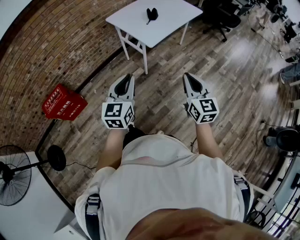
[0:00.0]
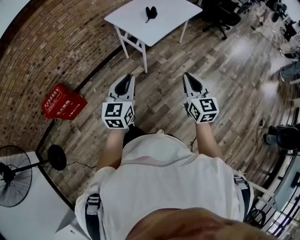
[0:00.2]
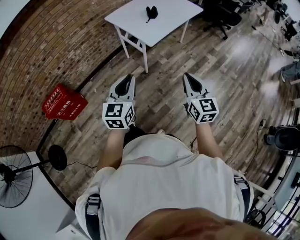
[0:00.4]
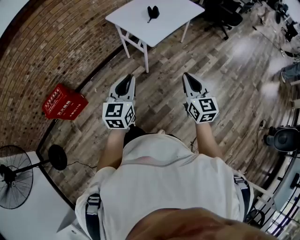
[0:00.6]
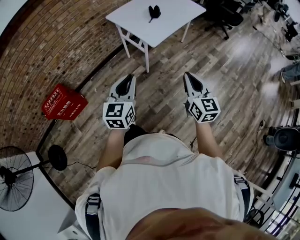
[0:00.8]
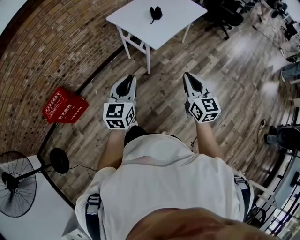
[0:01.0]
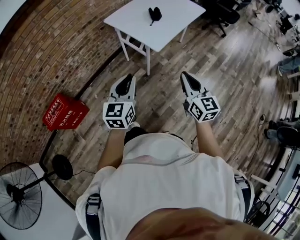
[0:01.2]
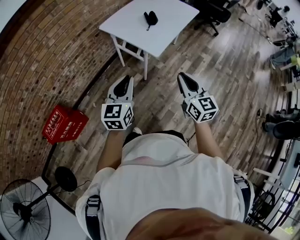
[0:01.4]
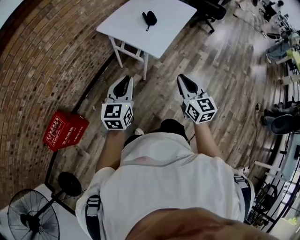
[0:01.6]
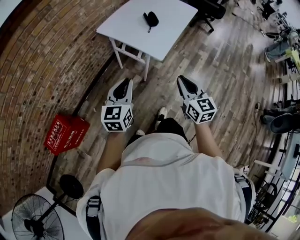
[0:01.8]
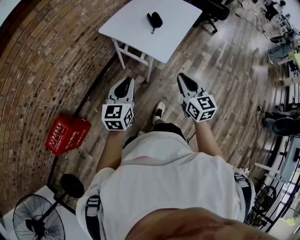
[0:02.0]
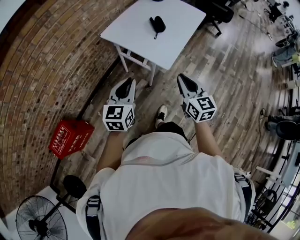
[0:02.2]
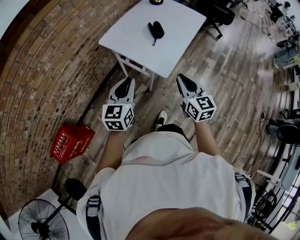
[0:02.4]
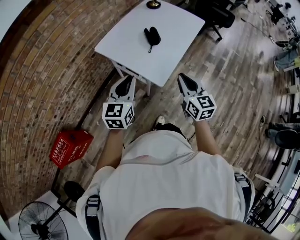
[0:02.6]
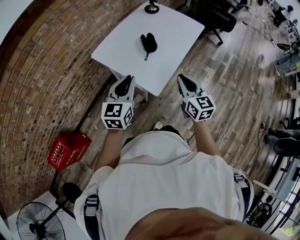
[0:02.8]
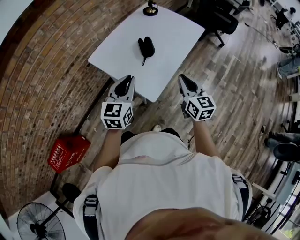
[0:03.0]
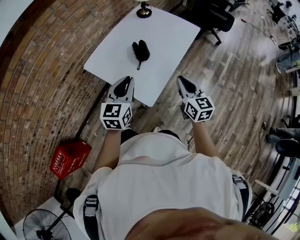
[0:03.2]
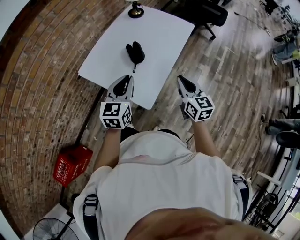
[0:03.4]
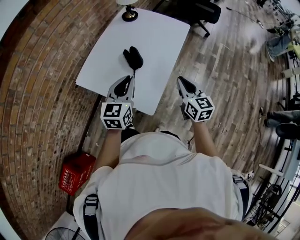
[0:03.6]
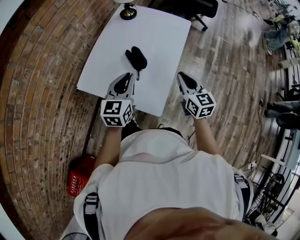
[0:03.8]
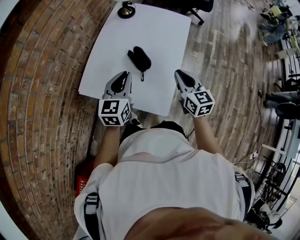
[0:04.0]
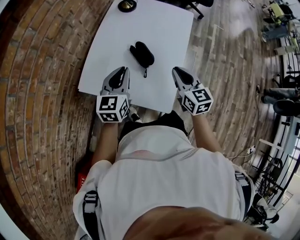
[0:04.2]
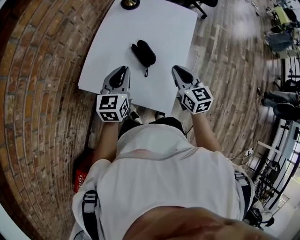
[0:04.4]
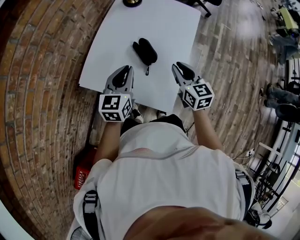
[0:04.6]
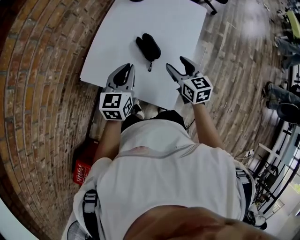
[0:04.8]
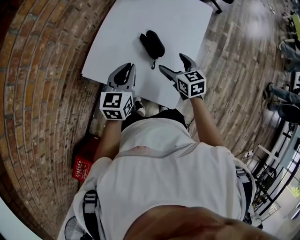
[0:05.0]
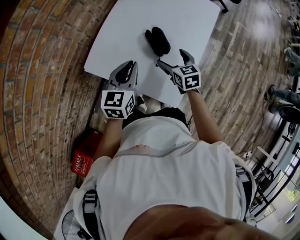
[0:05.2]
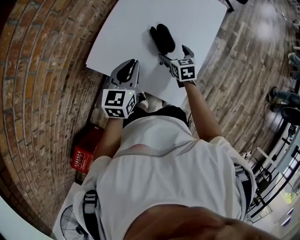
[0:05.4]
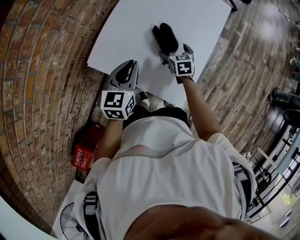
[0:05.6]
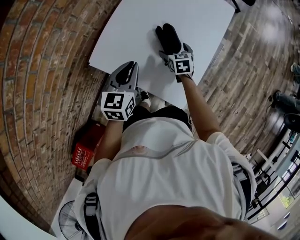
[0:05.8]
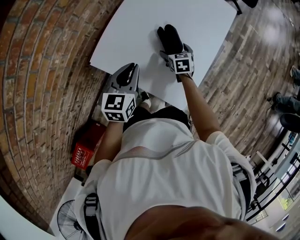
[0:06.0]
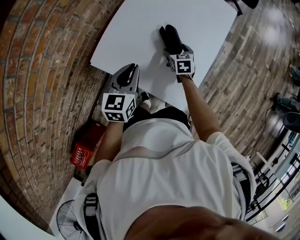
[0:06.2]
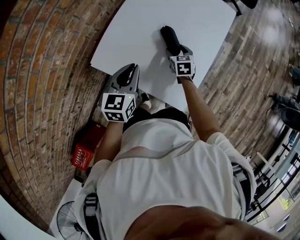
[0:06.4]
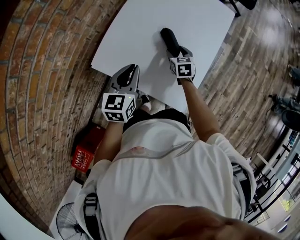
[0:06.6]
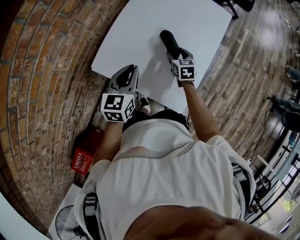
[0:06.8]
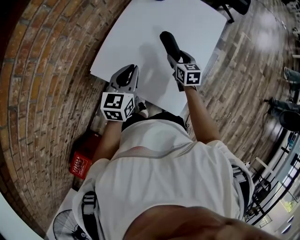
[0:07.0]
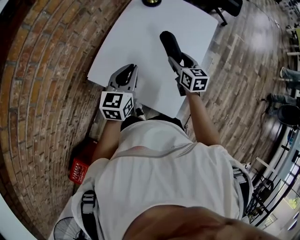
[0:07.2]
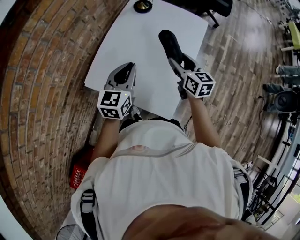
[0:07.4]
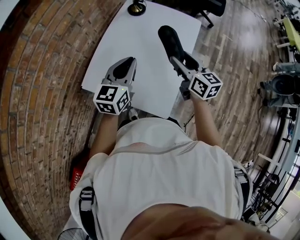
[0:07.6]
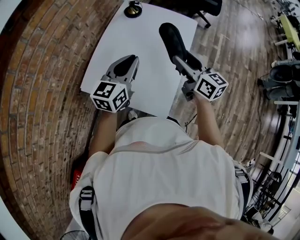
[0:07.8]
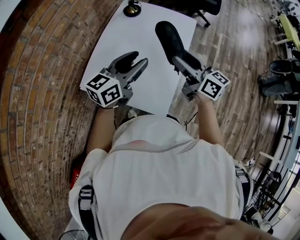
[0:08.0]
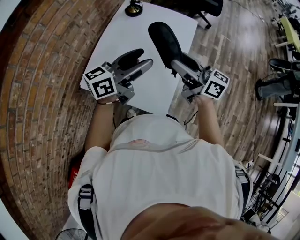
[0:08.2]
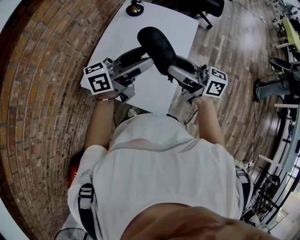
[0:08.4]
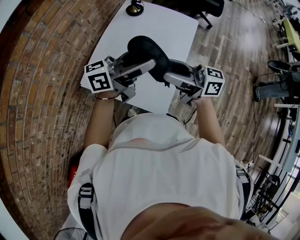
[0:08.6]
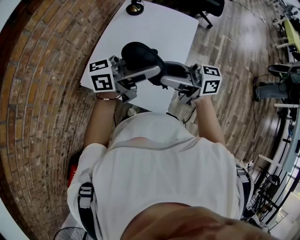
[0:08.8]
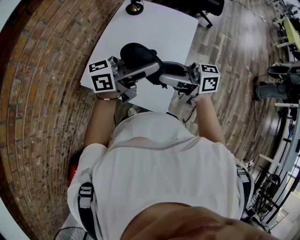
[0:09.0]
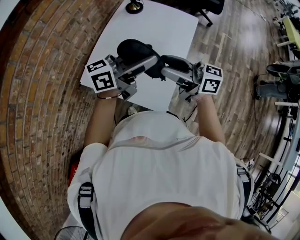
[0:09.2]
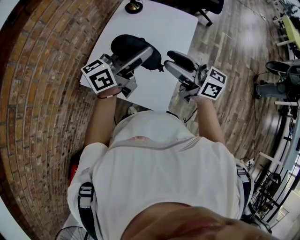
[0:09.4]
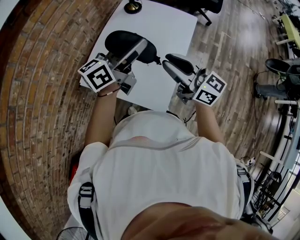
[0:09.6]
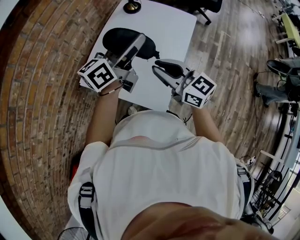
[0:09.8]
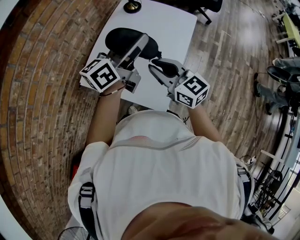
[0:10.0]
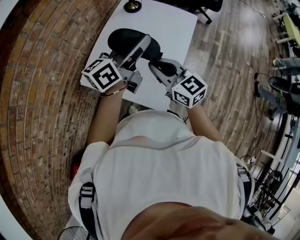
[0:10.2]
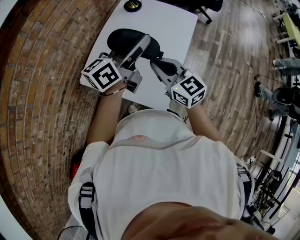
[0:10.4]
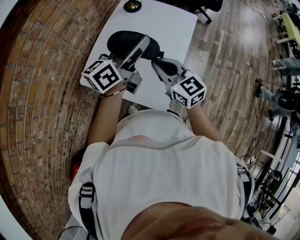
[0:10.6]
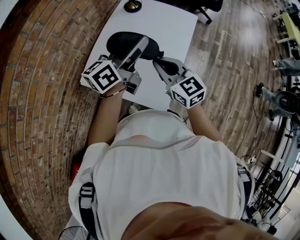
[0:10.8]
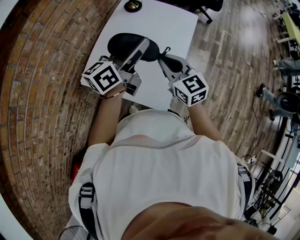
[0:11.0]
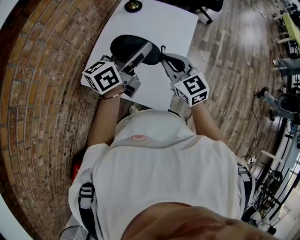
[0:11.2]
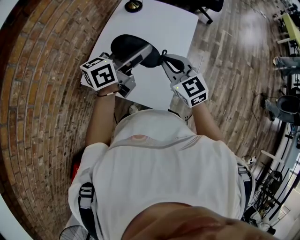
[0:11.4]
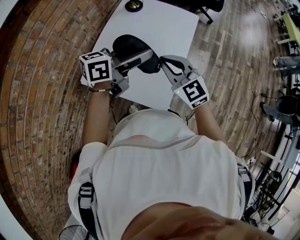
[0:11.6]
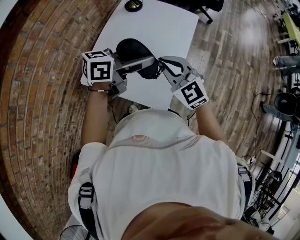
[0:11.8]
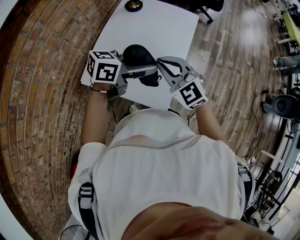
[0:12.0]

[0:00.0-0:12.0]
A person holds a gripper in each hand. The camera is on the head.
0.0 to 1.6 s: The right gripper goes about 20 cm to the left and forward; the left gripper heads forward and to the left, covering roughly 20 cm.
1.6 to 3.0 s: The grippers both shift forward by roughly 30 cm.
3.0 to 4.4 s: The grippers both shift forward and to the left by approximately 20 cm.
4.4 to 6.0 s: The right gripper moves downward and forward, some 25 cm, turns by some 30 degrees, and opens. Meanwhile the left gripper shifts approximately 5 cm downward.
6.0 to 7.6 s: The right gripper goes about 30 cm upward, tilts its fingers about 40 degrees upward, and closes up. Meanwhile the left gripper shifts some 15 cm upward and to the right.
7.6 to 9.0 s: The left gripper moves some 15 cm, swivels approximately 60 degrees, and opens up. The right gripper moves about 15 cm, and changes its angle by some 60 degrees.
9.0 to 10.4 s: The right gripper shifts by roughly 5 cm, changes its angle by some 50 degrees, and closes; the left gripper moves approximately 10 cm, and turns by about 30 degrees.
10.4 to 12.0 s: The left gripper moves downward and backward, approximately 10 cm, and changes its angle by approximately 40 degrees. Meanwhile the right gripper swivels some 30 degrees.

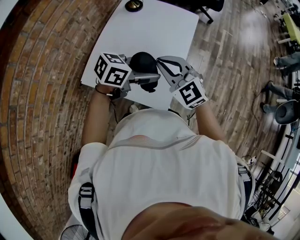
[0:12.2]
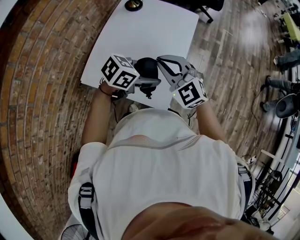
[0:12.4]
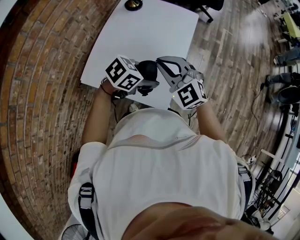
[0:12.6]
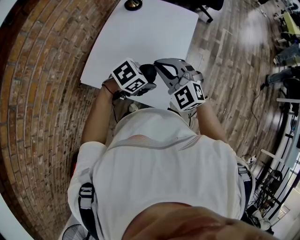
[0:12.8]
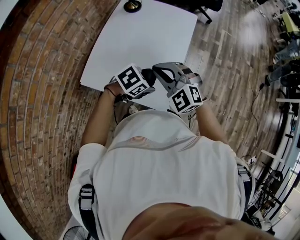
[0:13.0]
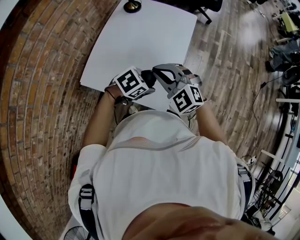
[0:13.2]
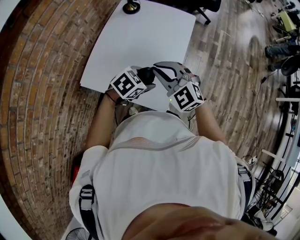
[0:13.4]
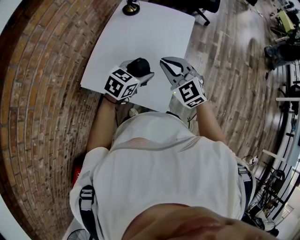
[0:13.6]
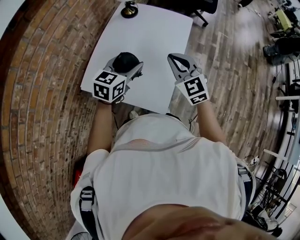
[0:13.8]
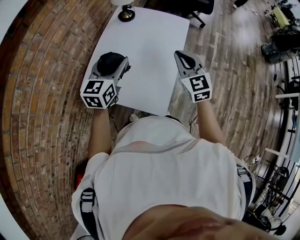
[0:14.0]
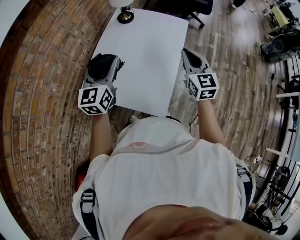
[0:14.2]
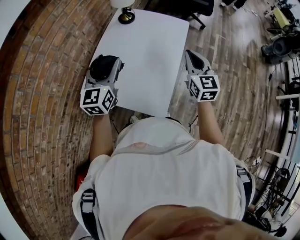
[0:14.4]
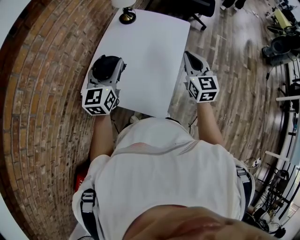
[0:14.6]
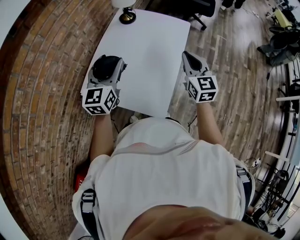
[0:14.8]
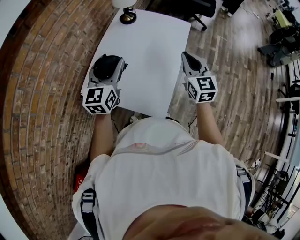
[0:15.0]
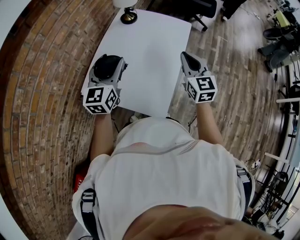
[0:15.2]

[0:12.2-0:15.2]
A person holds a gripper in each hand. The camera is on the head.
12.2 to 13.8 s: The left gripper moves roughly 10 cm downward and comes back, and swivels some 40 degrees, while the right gripper ends up about 5 cm from where it was.
13.8 to 15.2 s: The left gripper travels to the left and upward by approximately 10 cm, and changes its angle by about 30 degrees. The right gripper travels to the right by about 5 cm, and turns by approximately 20 degrees.

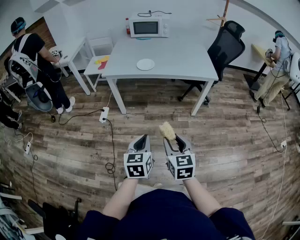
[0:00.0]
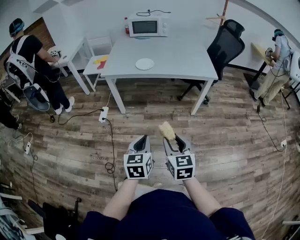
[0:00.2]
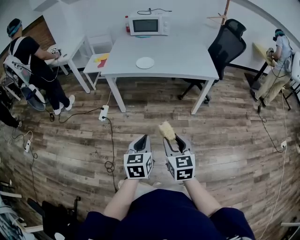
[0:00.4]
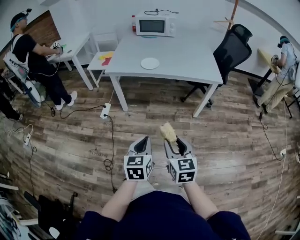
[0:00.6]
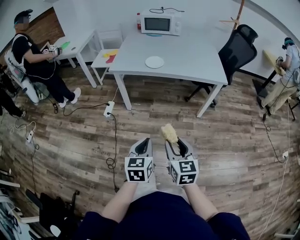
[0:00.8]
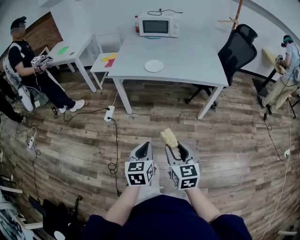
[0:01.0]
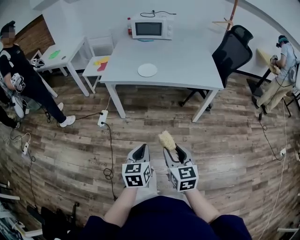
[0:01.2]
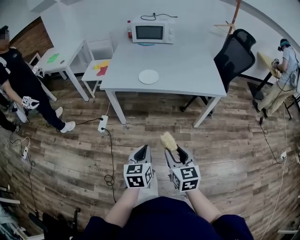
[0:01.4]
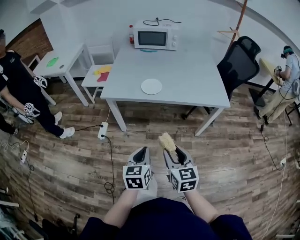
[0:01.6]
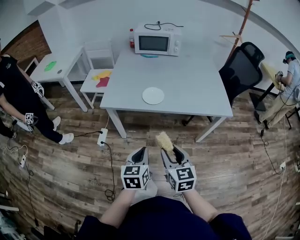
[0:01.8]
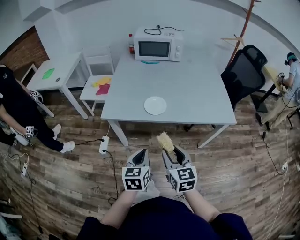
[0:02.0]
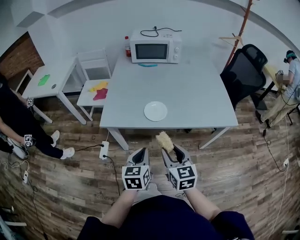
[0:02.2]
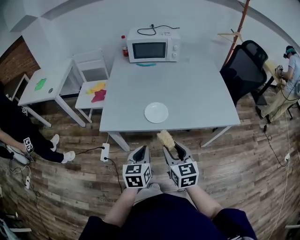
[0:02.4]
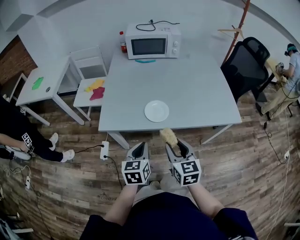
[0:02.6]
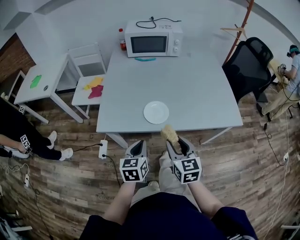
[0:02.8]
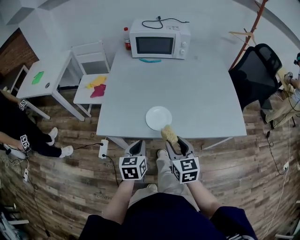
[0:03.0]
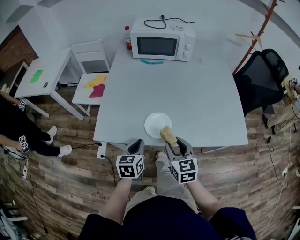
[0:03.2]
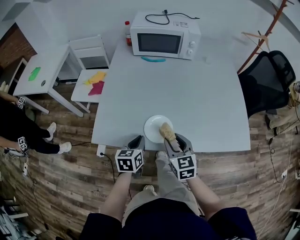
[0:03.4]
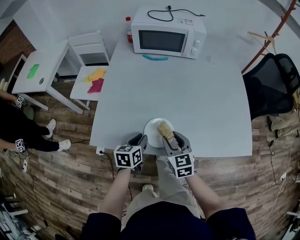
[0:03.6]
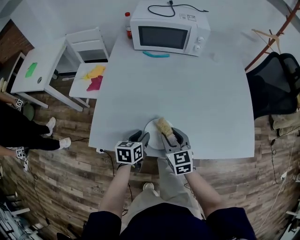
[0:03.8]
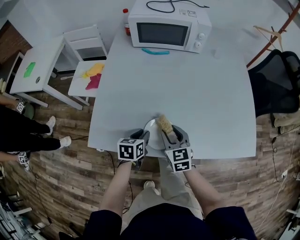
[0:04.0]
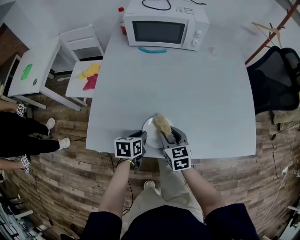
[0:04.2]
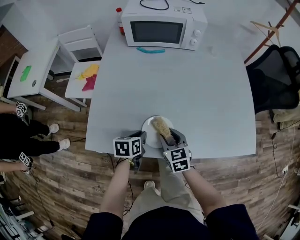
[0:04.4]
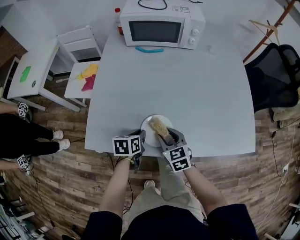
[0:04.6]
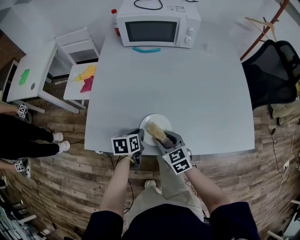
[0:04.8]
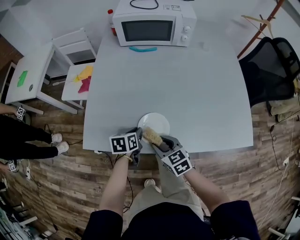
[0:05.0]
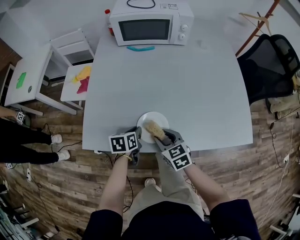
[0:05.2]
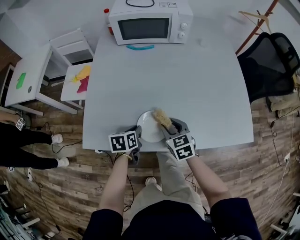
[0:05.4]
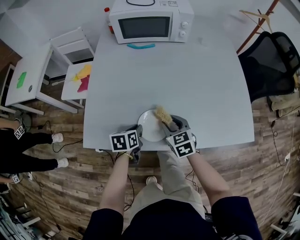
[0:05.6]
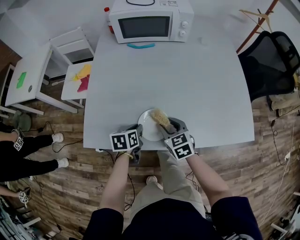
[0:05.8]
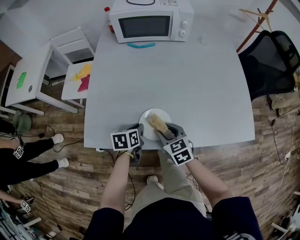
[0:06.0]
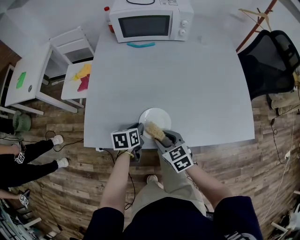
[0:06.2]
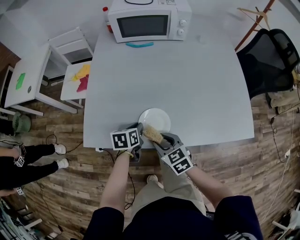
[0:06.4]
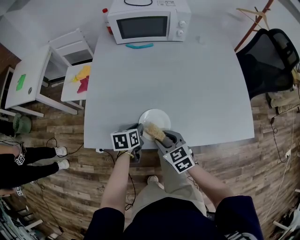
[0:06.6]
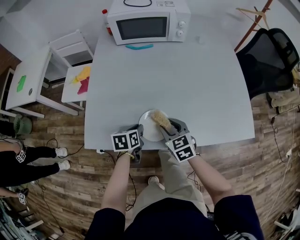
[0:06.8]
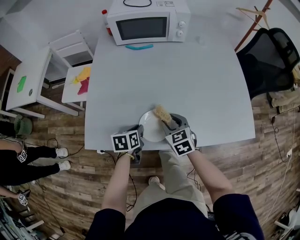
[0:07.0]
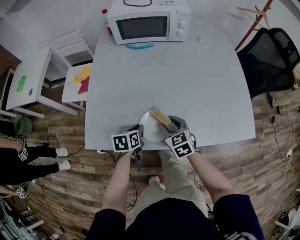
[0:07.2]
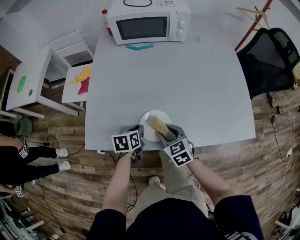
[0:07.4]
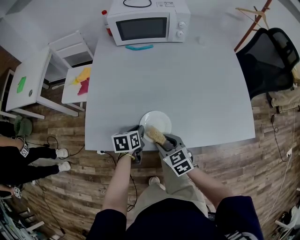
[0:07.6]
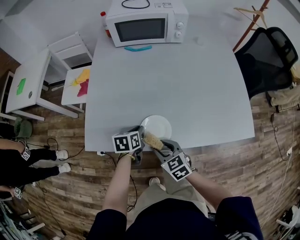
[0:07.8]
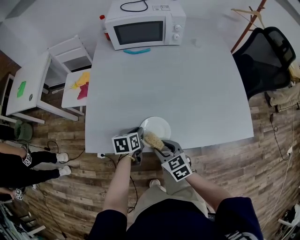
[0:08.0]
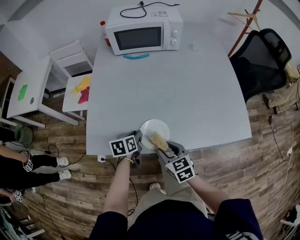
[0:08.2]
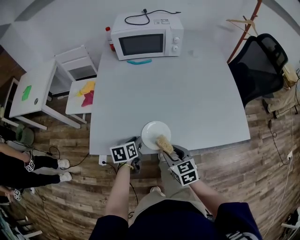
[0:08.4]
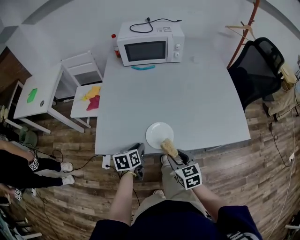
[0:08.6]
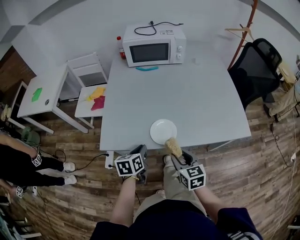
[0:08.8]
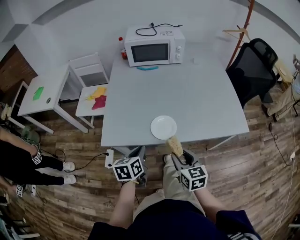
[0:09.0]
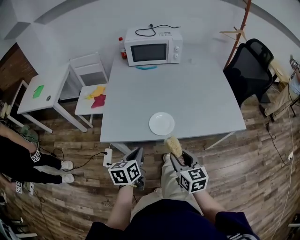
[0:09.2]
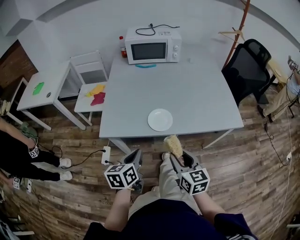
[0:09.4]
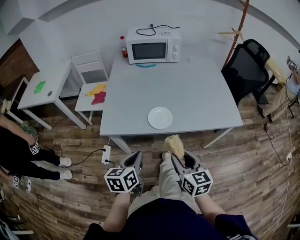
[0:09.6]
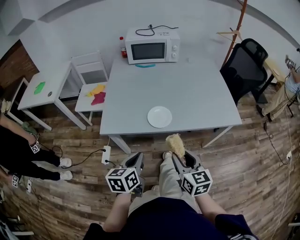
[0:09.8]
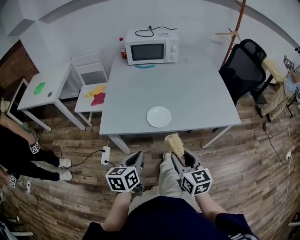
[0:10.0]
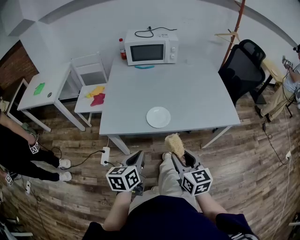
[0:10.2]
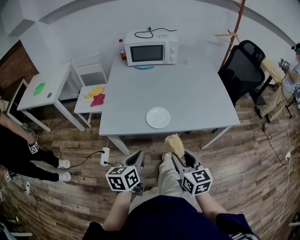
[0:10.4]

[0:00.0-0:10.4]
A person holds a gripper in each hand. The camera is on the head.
0.0 to 1.4 s: The two grippers go approximately 10 cm forward.
1.4 to 3.0 s: The two grippers go approximately 40 cm forward.
3.0 to 4.4 s: The two grippers go approximately 20 cm forward and downward. The left gripper changes its angle by approximately 30 degrees.
4.4 to 6.0 s: The right gripper goes forward and backward, approximately 10 cm each way, reversing 2 times.
6.0 to 7.4 s: The right gripper moves forward and backward over approximately 10 cm, changing direction 2 times.
7.4 to 9.0 s: The two grippers go about 20 cm backward and upward. The right gripper rotates about 30 degrees.
9.0 to 10.4 s: The grippers both shift backward and upward by some 10 cm.
